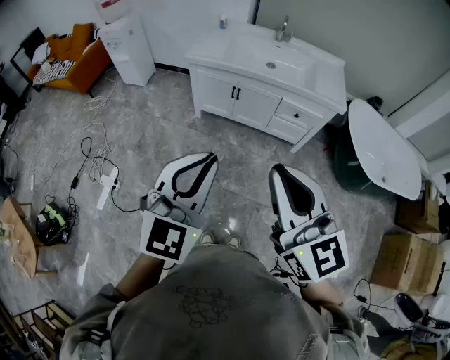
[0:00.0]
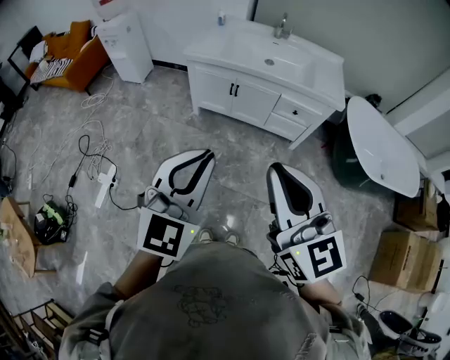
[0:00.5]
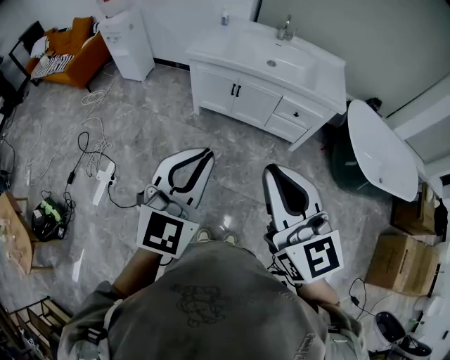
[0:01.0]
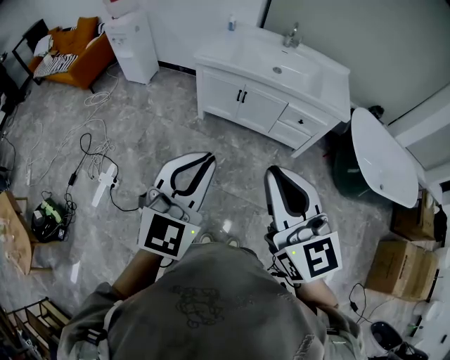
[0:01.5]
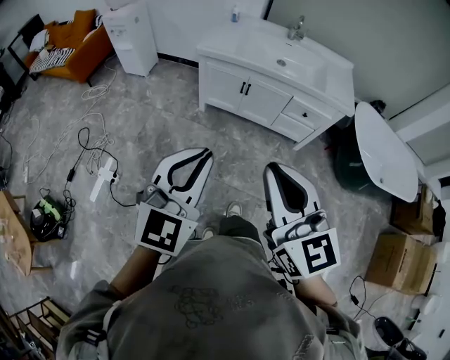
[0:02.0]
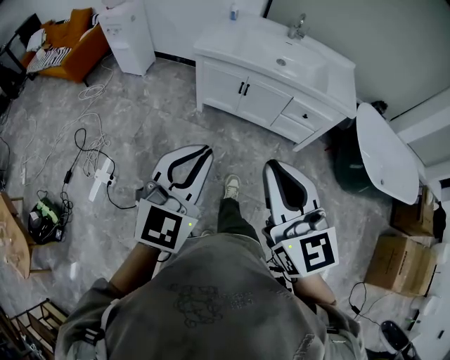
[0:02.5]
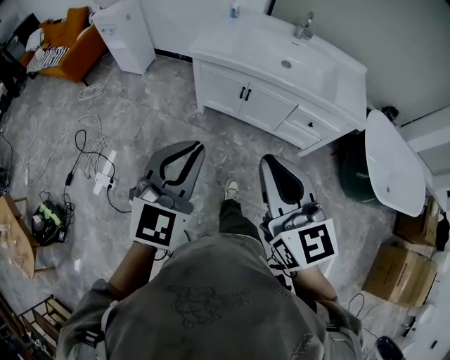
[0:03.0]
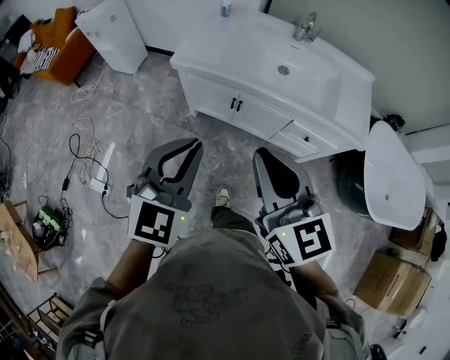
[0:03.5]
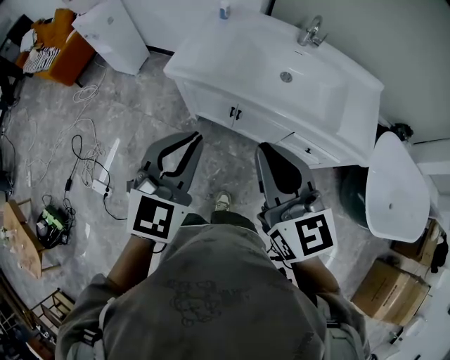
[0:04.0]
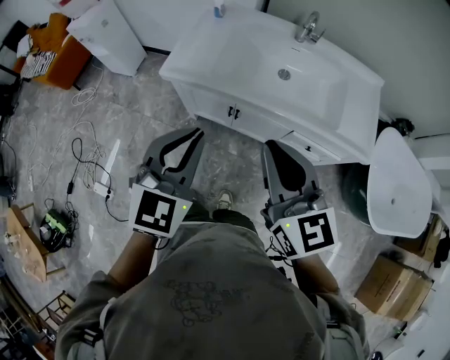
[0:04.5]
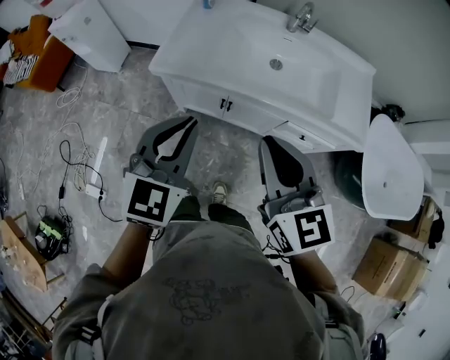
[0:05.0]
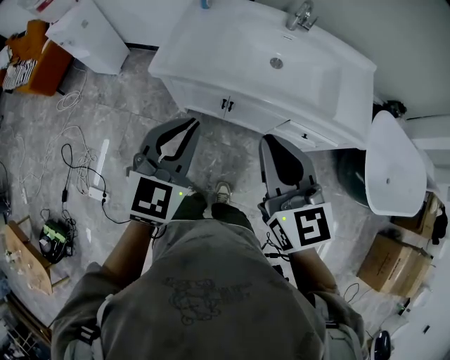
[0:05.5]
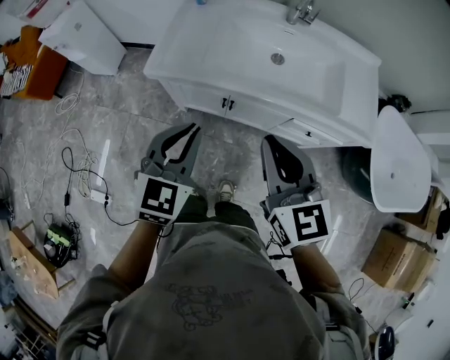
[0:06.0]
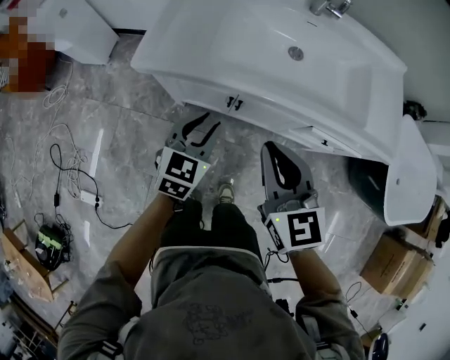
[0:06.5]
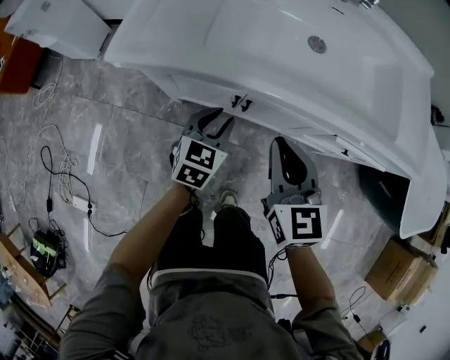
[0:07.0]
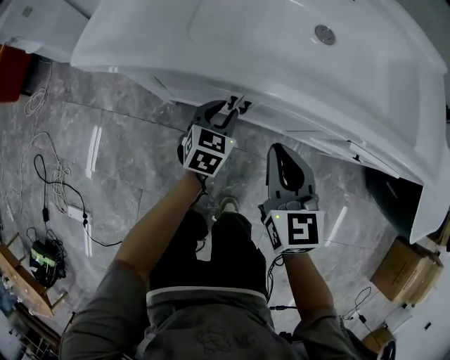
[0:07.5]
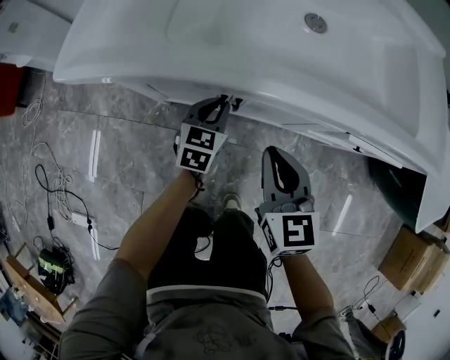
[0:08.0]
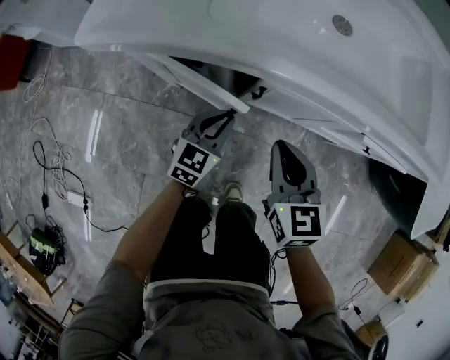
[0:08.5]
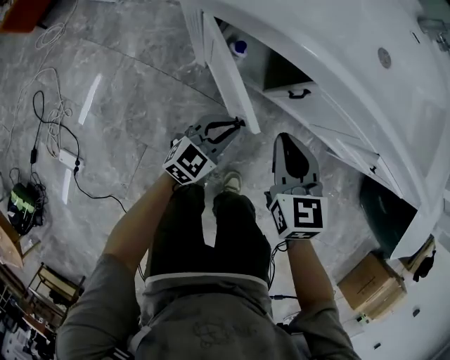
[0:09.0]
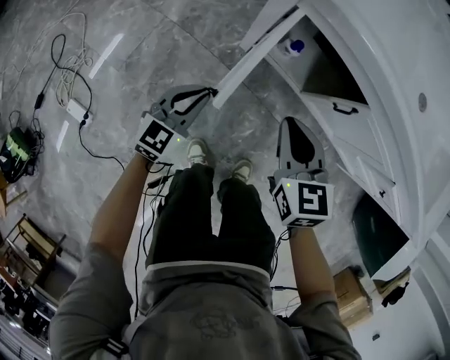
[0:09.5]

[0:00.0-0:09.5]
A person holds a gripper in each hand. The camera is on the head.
0:00.0 to 0:02.0: Both grippers travel together to the left, approximately 10 cm.
0:02.0 to 0:04.0: The pair of grippers is taken forward, some 40 cm.
0:04.0 to 0:05.5: The left gripper shifts some 5 cm forward.
0:05.5 to 0:07.5: The right gripper goes approximately 40 cm downward; the left gripper heads downward and forward, covering some 60 cm, swivels approximately 20 degrees, and opens up.
0:07.5 to 0:09.5: The left gripper is displaced to the left and backward by roughly 35 cm, while the right gripper travels to the left by some 20 cm, and rotates approximately 30 degrees.

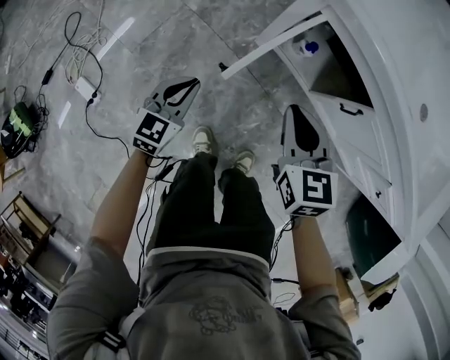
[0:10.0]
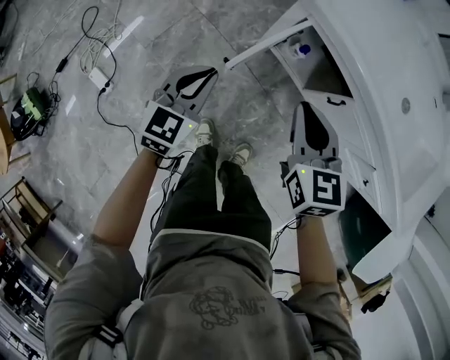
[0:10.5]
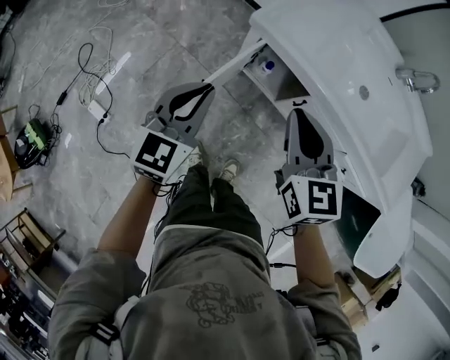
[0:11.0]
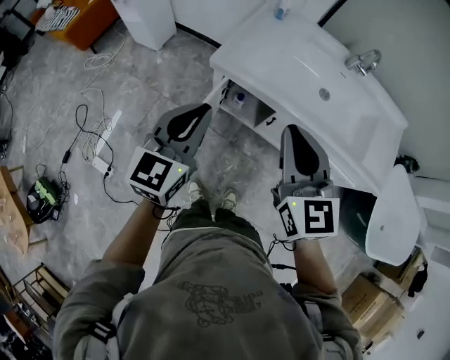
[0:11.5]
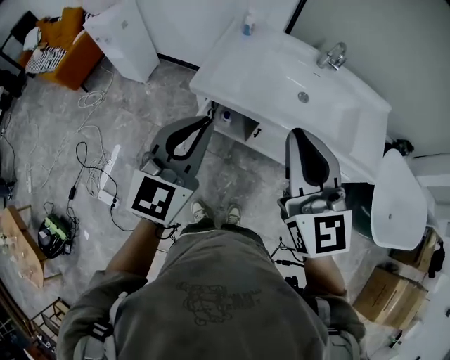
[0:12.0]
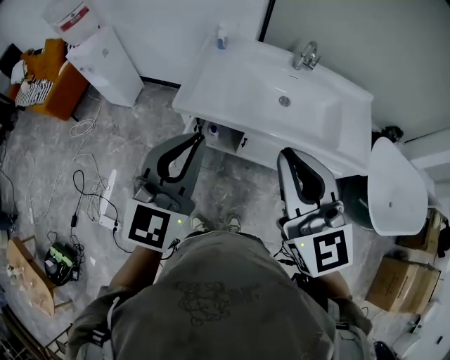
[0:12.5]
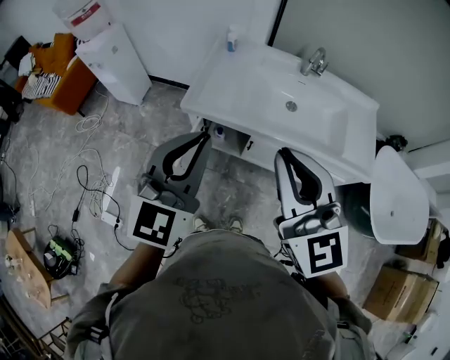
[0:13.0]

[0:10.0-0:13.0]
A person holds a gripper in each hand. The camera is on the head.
0:10.0 to 0:11.5: Both grippers travel together upward, about 40 cm. The left gripper turns by about 20 degrees. The right gripper swivels some 30 degrees.
0:11.5 to 0:13.0: The left gripper goes about 15 cm upward and to the right. The right gripper travels upward by some 15 cm.

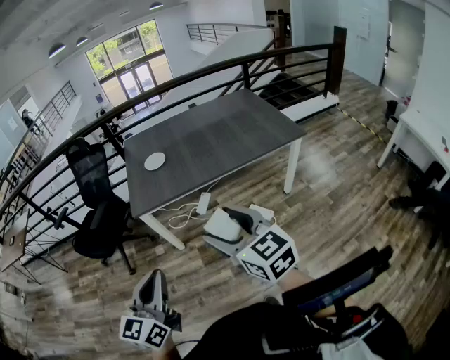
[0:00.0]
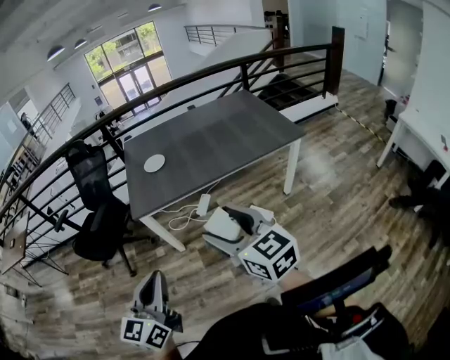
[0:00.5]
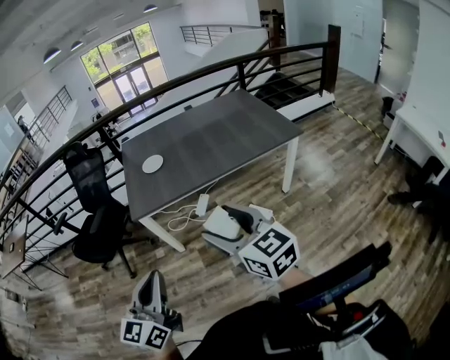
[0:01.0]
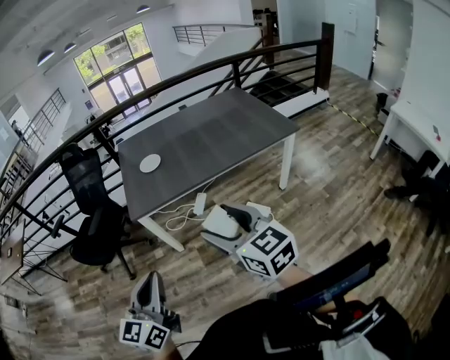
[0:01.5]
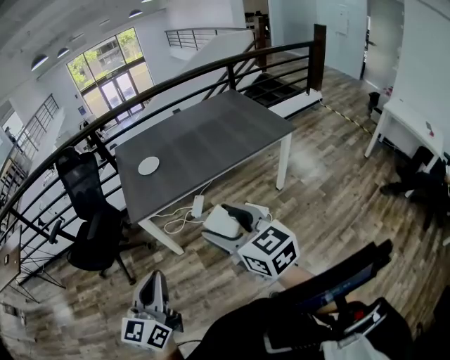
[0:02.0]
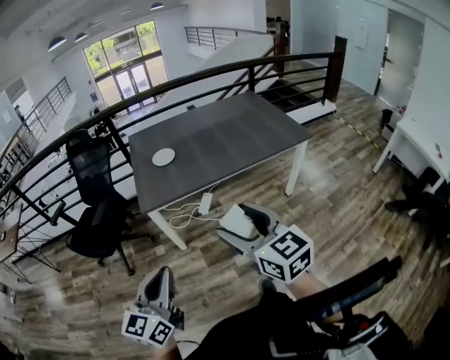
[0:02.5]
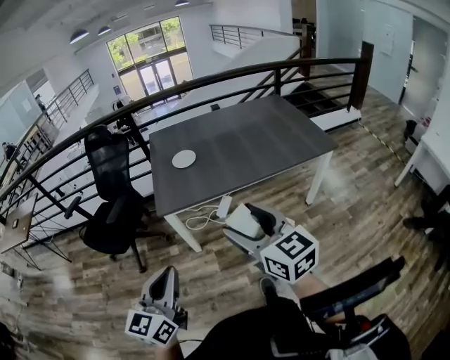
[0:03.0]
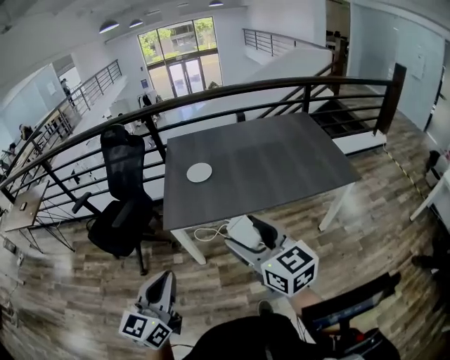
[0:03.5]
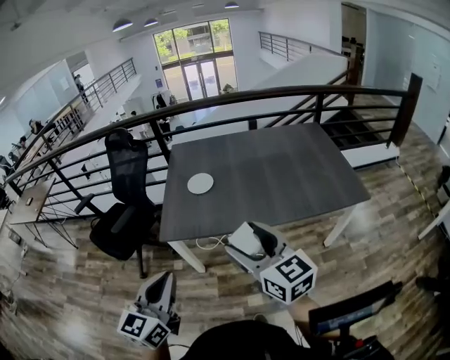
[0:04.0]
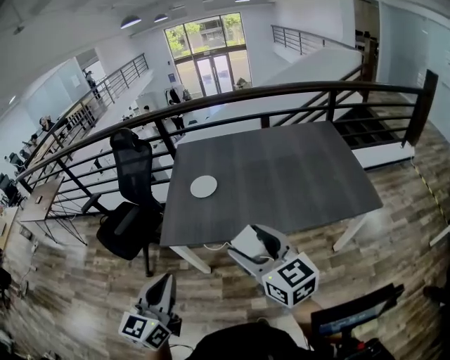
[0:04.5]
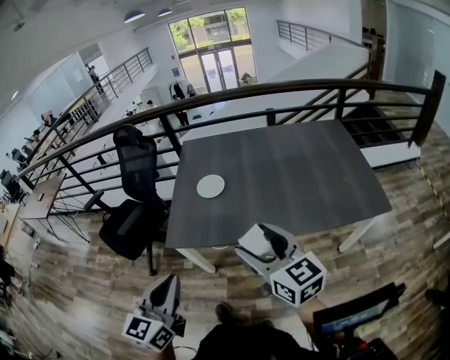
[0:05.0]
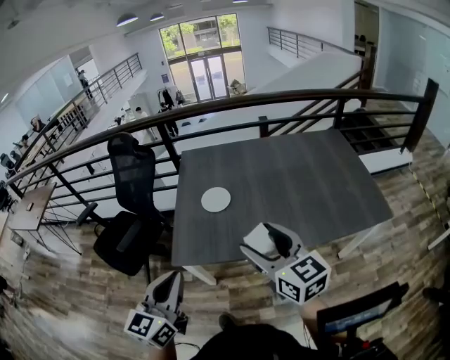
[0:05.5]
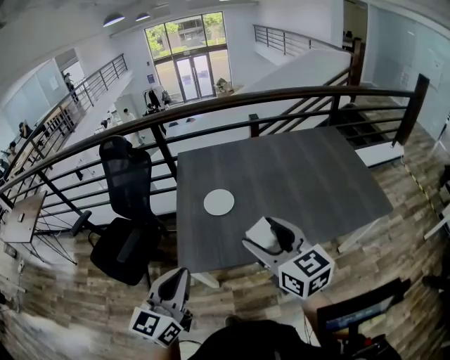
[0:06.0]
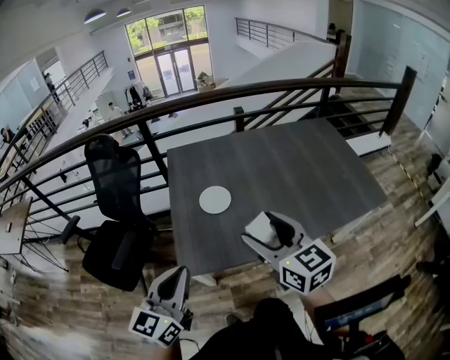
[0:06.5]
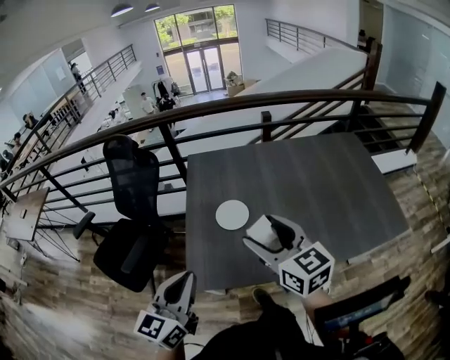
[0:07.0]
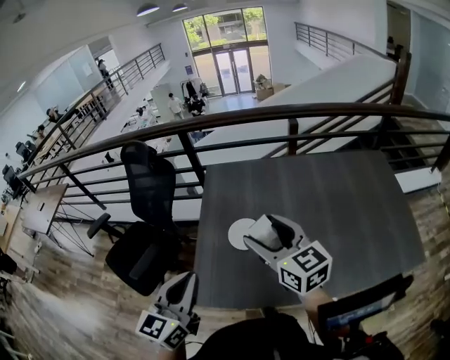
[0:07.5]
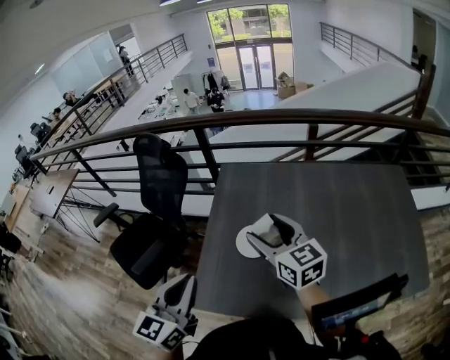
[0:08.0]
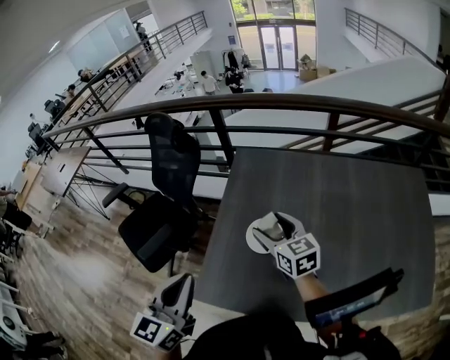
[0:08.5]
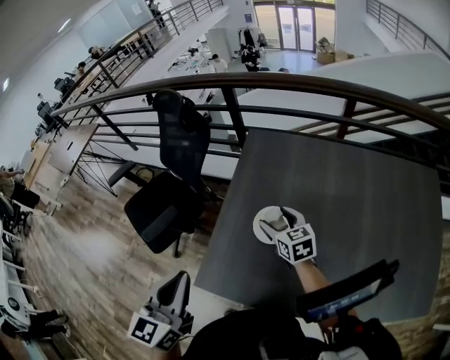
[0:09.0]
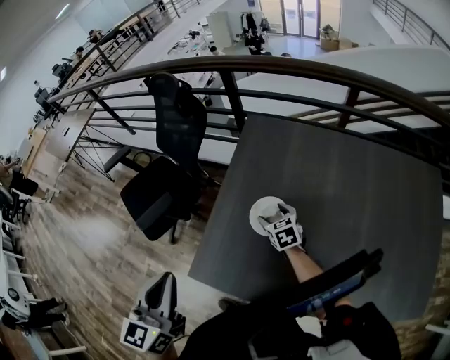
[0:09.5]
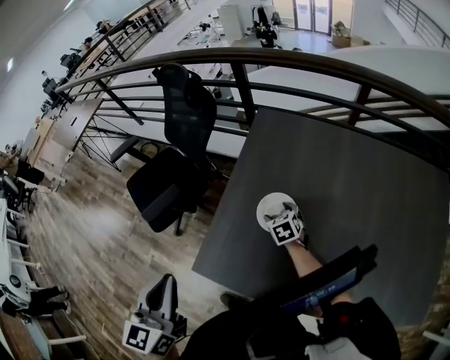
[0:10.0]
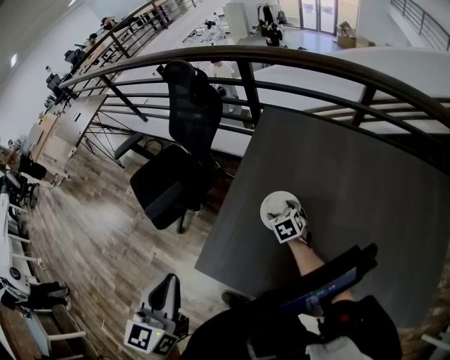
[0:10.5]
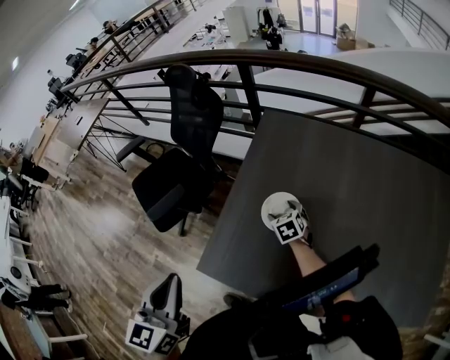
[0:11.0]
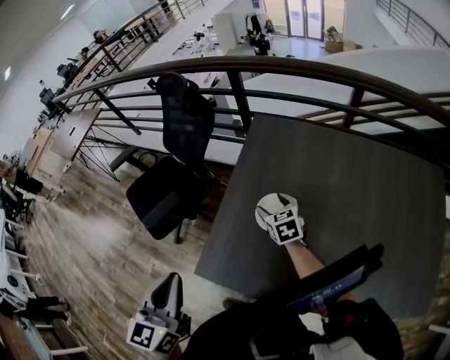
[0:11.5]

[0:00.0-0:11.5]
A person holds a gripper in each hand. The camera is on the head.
0:00.0 to 0:02.0: The left gripper moves to the left, roughly 5 cm.
0:02.0 to 0:04.0: Both grippers travel together forward, about 25 cm.
0:04.0 to 0:06.0: The grippers both shift forward by about 20 cm.
0:06.0 to 0:07.5: Both grippers move forward, roughly 20 cm.
0:07.5 to 0:09.5: The right gripper goes approximately 35 cm downward and forward, and tips its fingers downward by some 40 degrees. The left gripper shifts by some 5 cm, and turns by some 30 degrees.
0:09.5 to 0:11.5: The right gripper moves upward, roughly 5 cm.

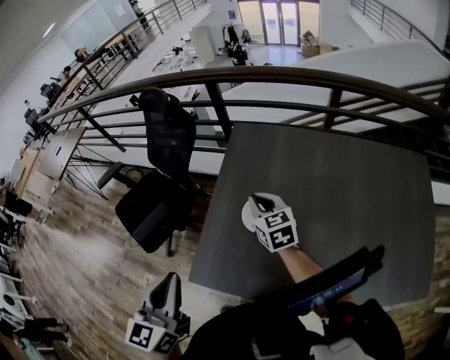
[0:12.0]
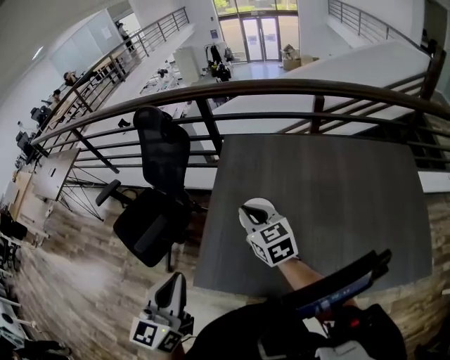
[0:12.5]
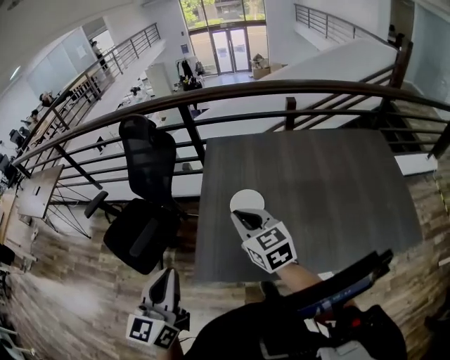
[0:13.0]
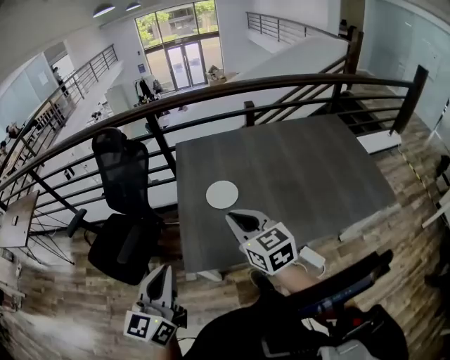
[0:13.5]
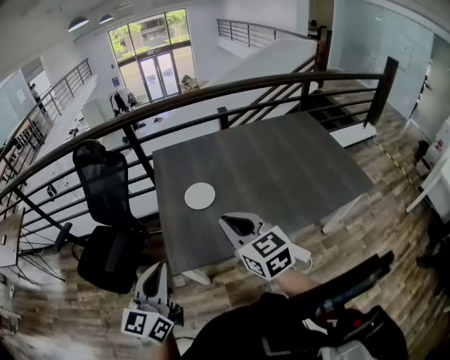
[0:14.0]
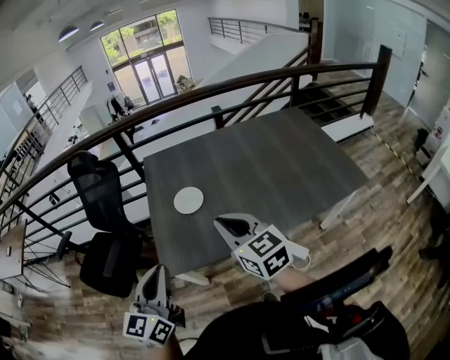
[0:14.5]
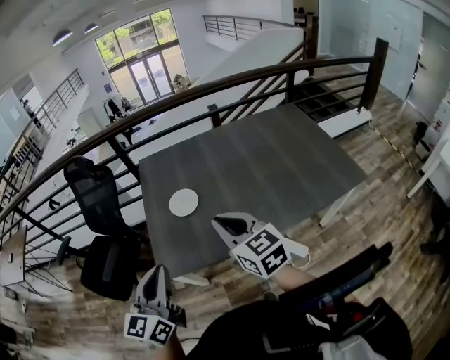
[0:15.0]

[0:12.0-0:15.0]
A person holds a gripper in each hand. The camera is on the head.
0:12.0 to 0:13.5: The right gripper shifts approximately 30 cm backward and upward, while the left gripper heads backward and to the left, covering roughly 15 cm, and changes its angle by some 30 degrees.
0:13.5 to 0:15.0: The right gripper travels to the right and backward by about 15 cm; the left gripper shifts about 10 cm to the right.
